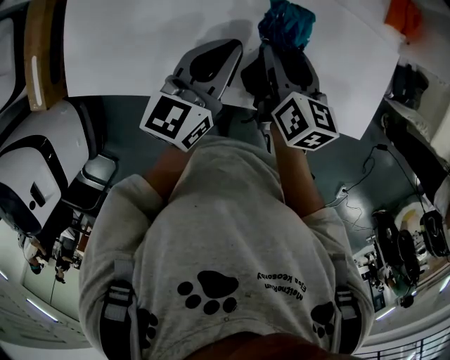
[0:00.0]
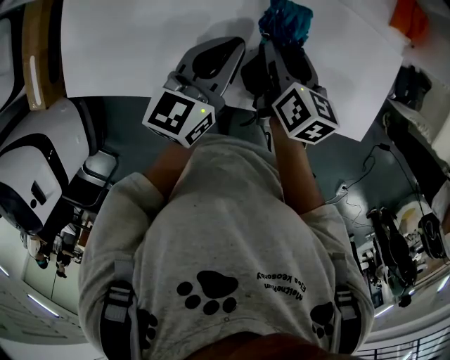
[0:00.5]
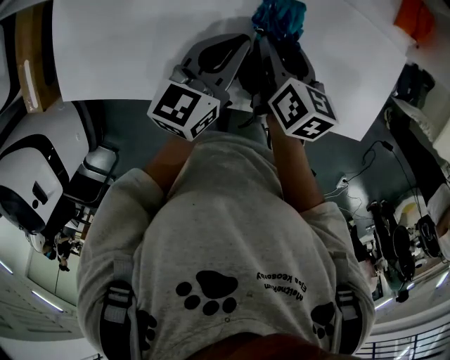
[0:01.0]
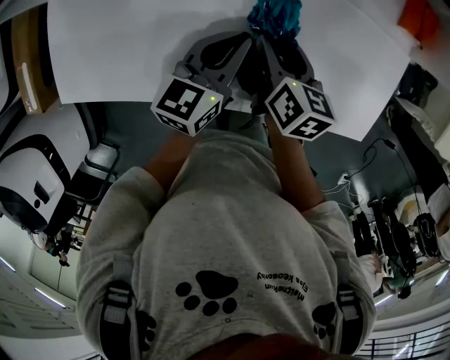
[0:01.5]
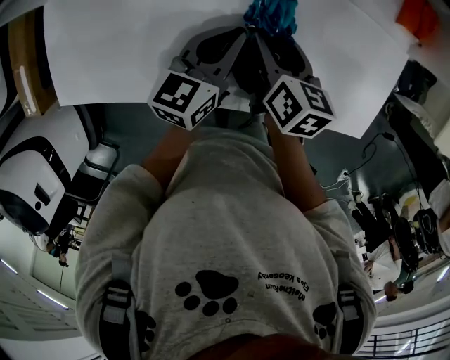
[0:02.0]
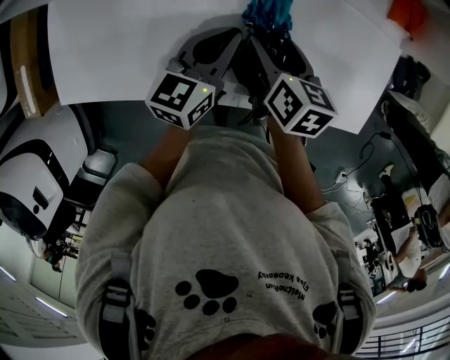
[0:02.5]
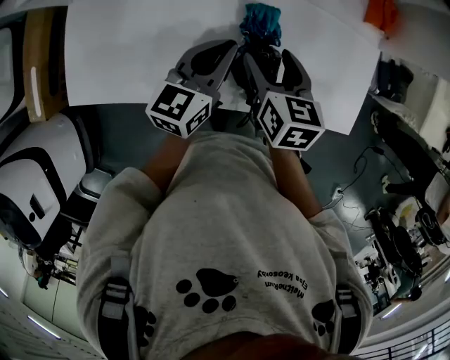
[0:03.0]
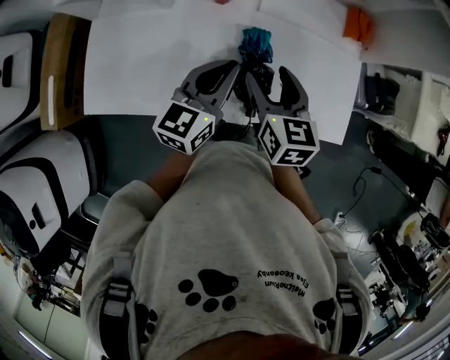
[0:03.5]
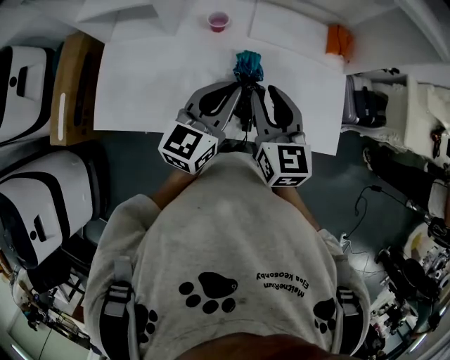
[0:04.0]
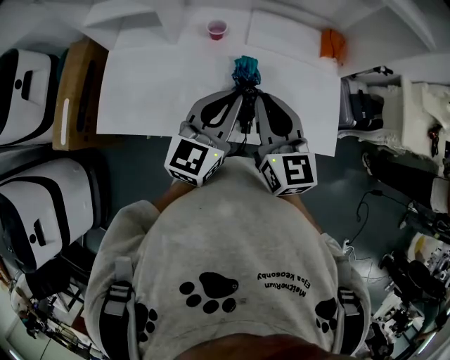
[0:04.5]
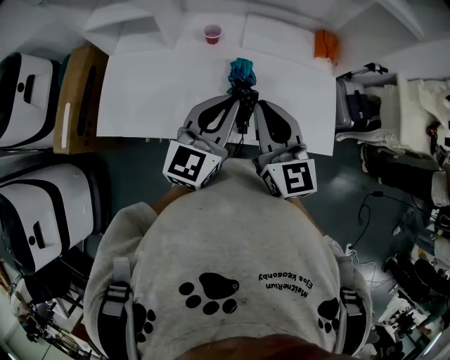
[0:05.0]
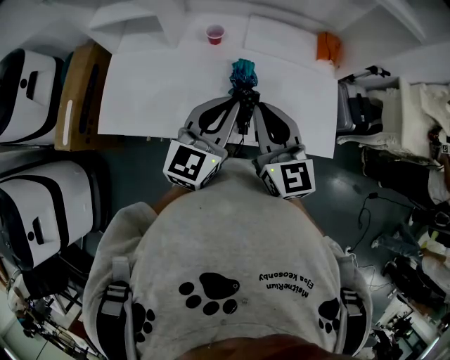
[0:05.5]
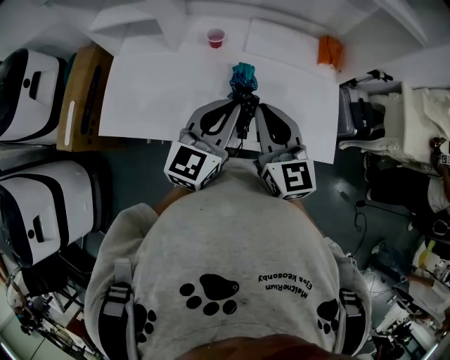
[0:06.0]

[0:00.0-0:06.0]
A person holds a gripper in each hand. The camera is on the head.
0:00.0 to 0:02.0: The two grippers go some 5 cm downward.
0:02.0 to 0:04.0: Both grippers move upward and backward, approximately 25 cm. The left gripper turns by approximately 20 degrees, while the right gripper rotates roughly 40 degrees, and closes up.
0:04.0 to 0:06.0: Both grippers travel together backward, approximately 5 cm. The right gripper closes its fingers.

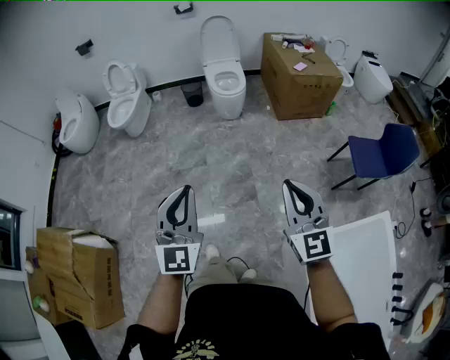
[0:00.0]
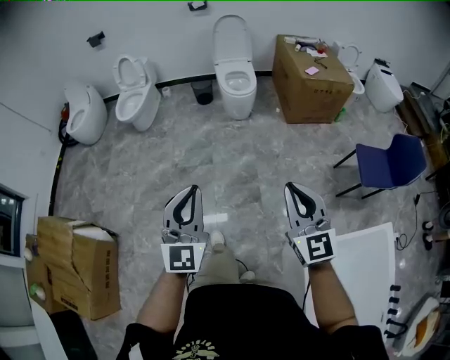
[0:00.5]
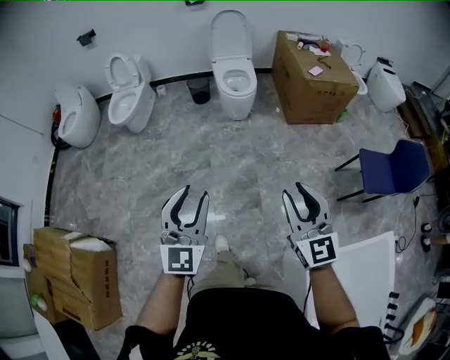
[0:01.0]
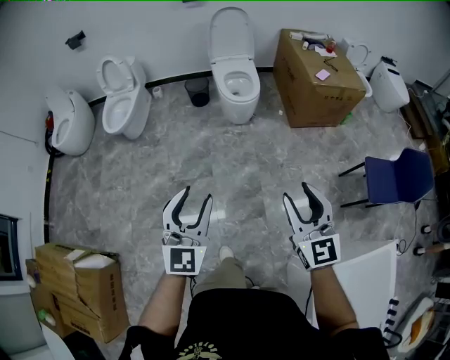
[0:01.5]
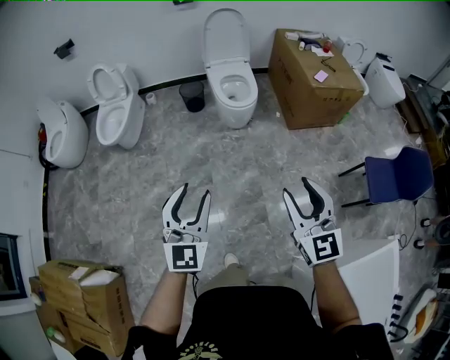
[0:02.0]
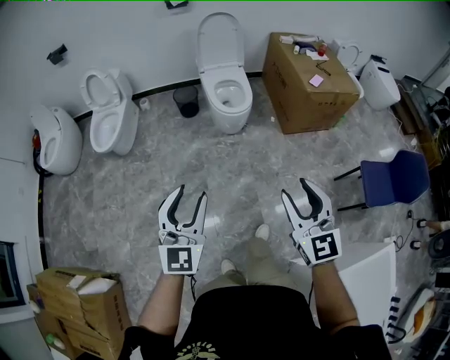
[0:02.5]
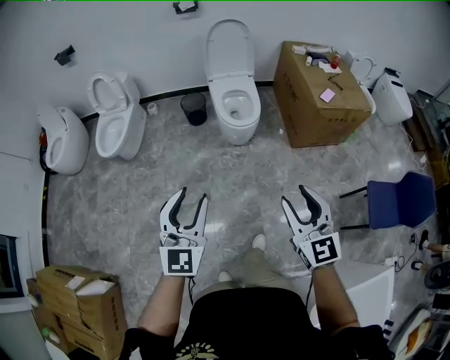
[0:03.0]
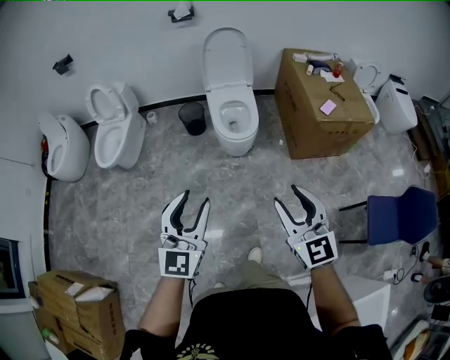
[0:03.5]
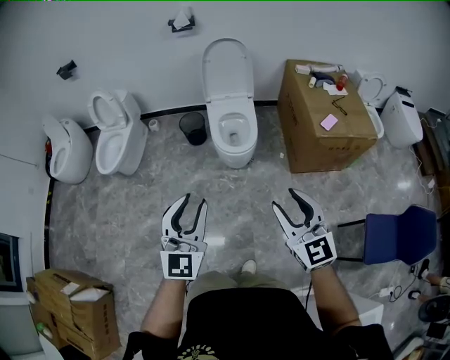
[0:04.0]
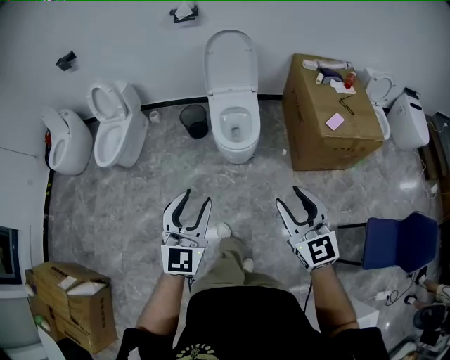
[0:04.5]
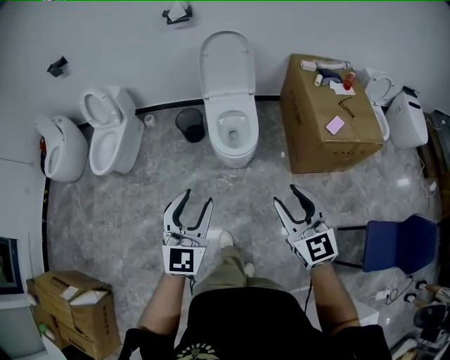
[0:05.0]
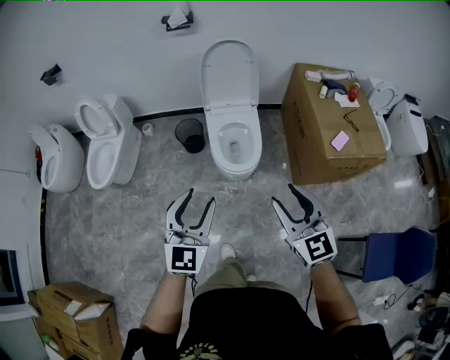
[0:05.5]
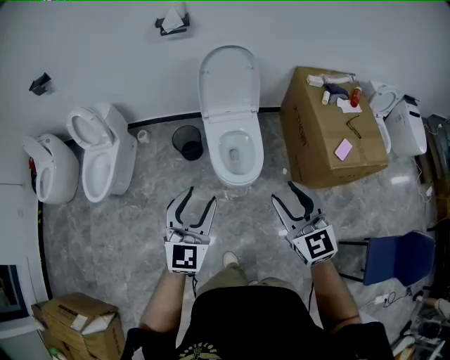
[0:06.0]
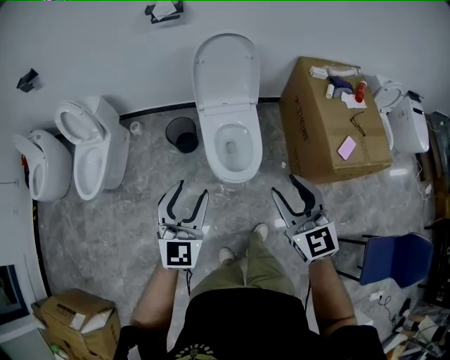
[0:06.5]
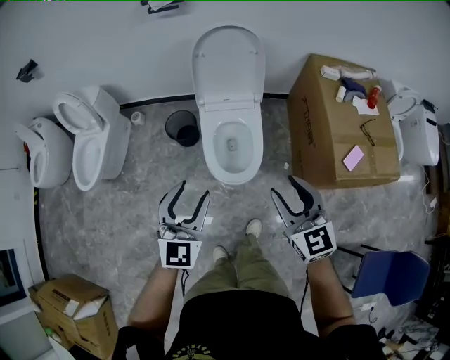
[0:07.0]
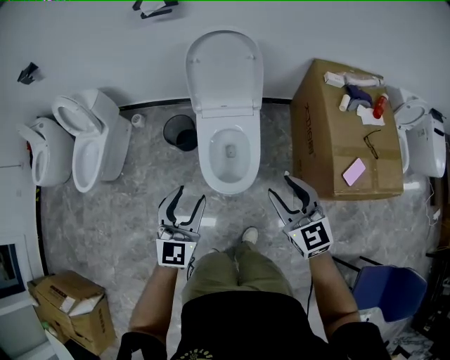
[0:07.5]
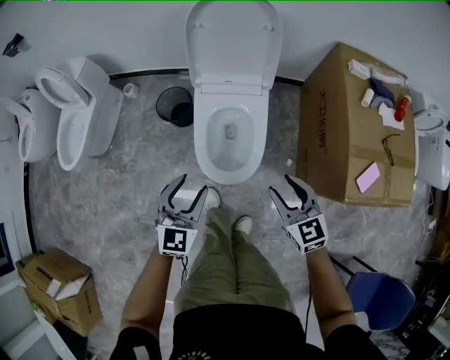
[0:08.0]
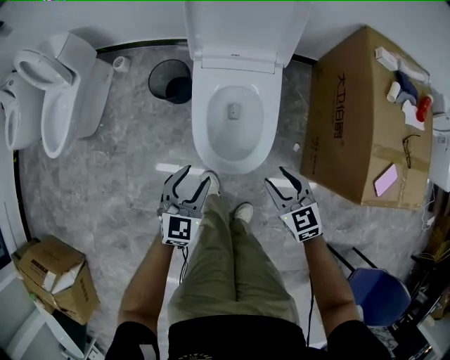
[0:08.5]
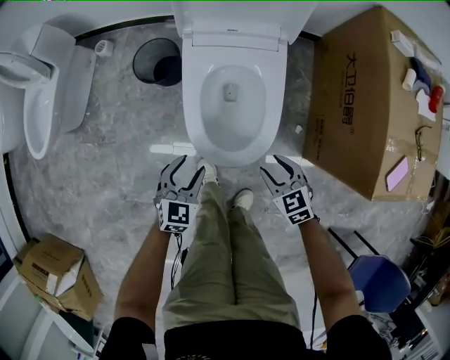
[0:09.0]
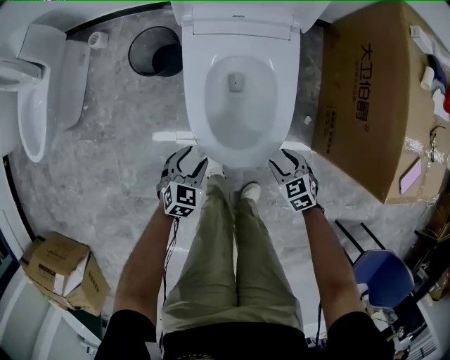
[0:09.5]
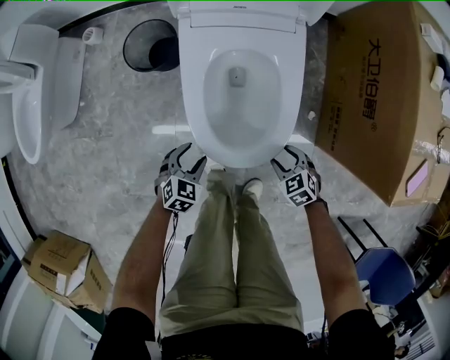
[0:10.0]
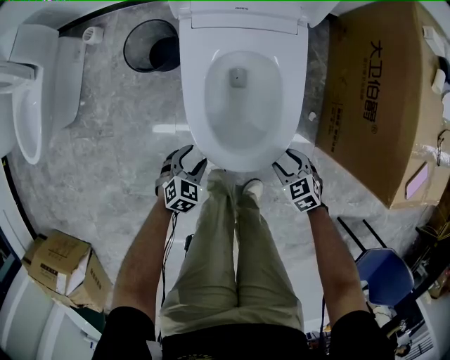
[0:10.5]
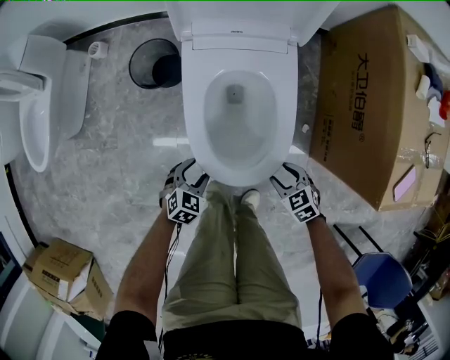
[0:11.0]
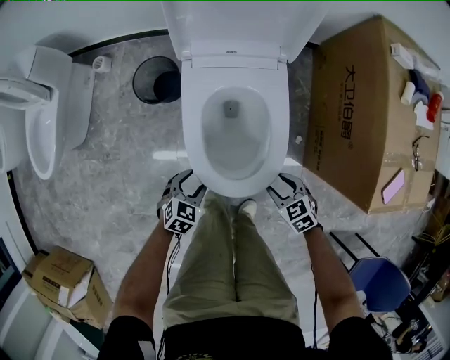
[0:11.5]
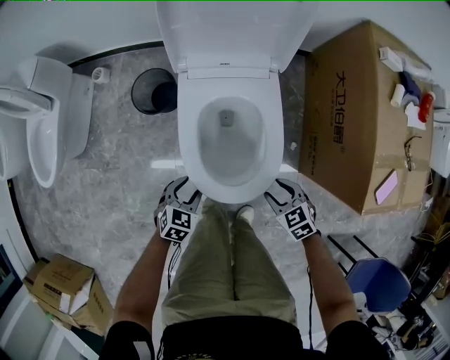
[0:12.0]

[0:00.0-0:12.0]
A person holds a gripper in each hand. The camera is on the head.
0:00.0 to 0:02.0: Both grippers move forward, some 35 cm. The right gripper opens its fingers. Meanwhile the left gripper opens its fingers.
0:02.0 to 0:04.0: The two grippers go roughly 30 cm forward and to the right.
0:04.0 to 0:06.0: Both grippers travel together forward, approximately 30 cm.
0:06.0 to 0:08.0: The left gripper moves downward and forward, some 35 cm. Meanwhile the right gripper is displaced downward, forward and to the right by some 40 cm, and rotates approximately 20 degrees.
0:08.0 to 0:10.0: The two grippers go some 40 cm downward. The left gripper tips its fingers downward by about 40 degrees. The right gripper tips its fingers downward by some 40 degrees.
0:10.0 to 0:12.0: The two grippers go some 15 cm upward.

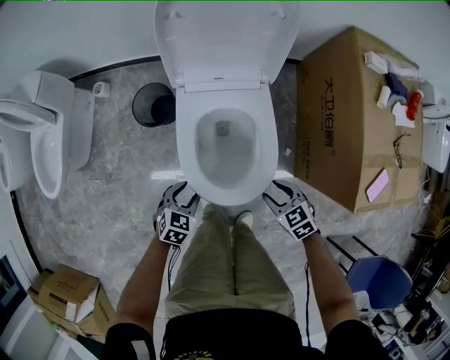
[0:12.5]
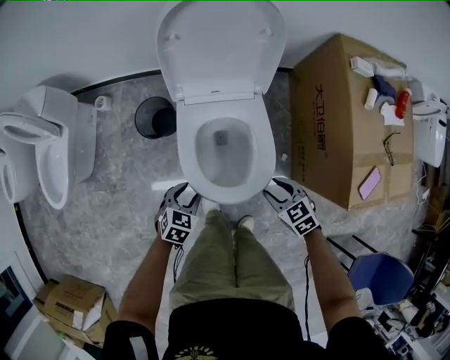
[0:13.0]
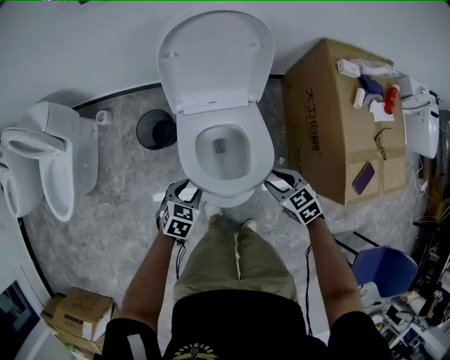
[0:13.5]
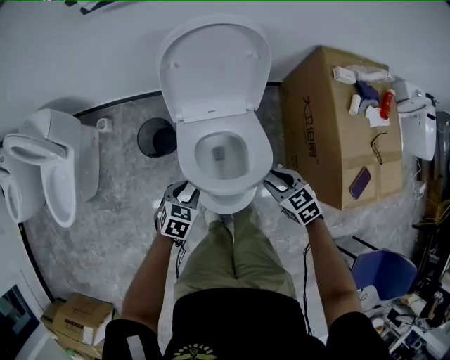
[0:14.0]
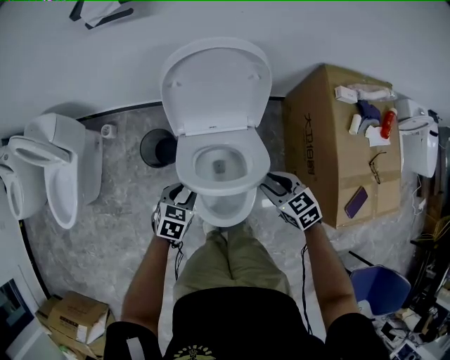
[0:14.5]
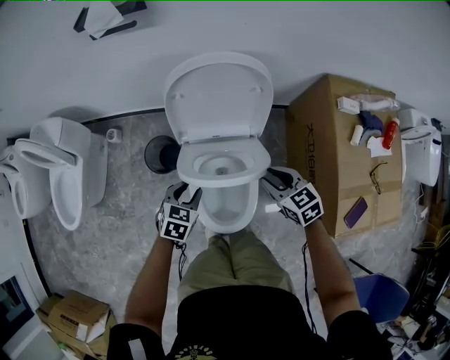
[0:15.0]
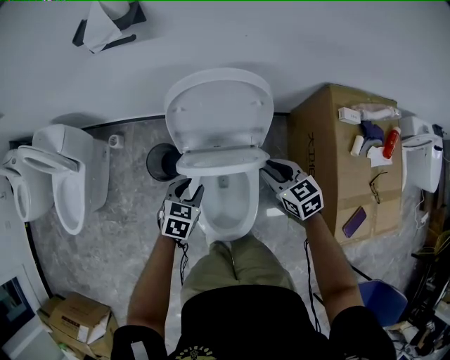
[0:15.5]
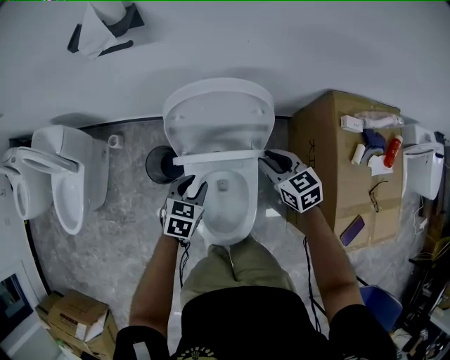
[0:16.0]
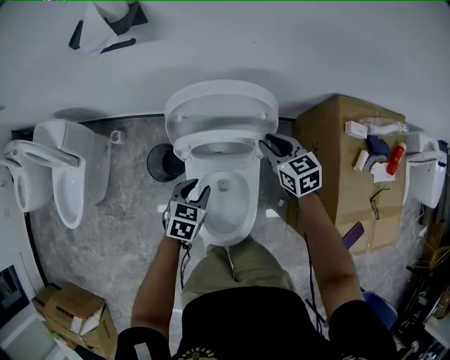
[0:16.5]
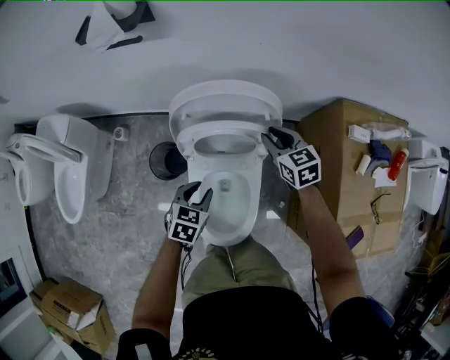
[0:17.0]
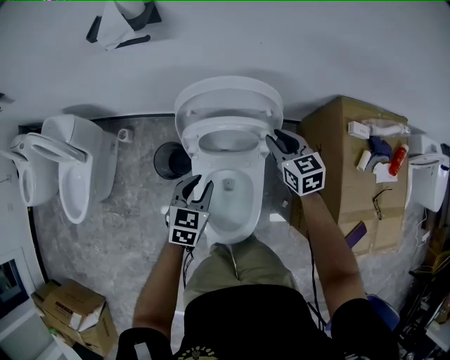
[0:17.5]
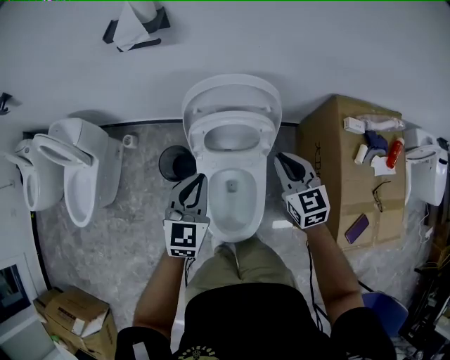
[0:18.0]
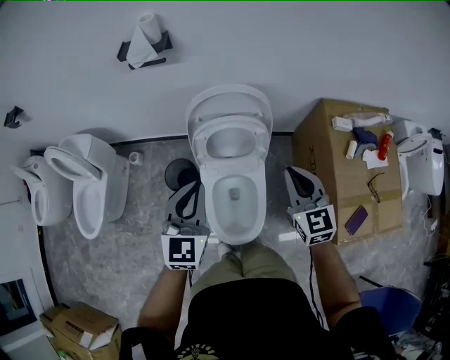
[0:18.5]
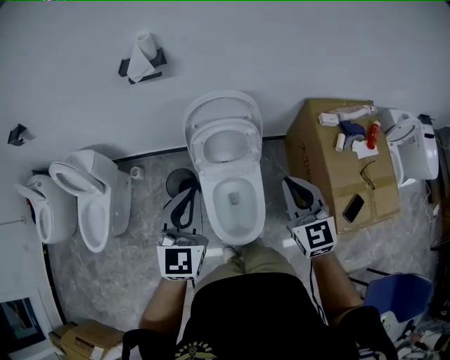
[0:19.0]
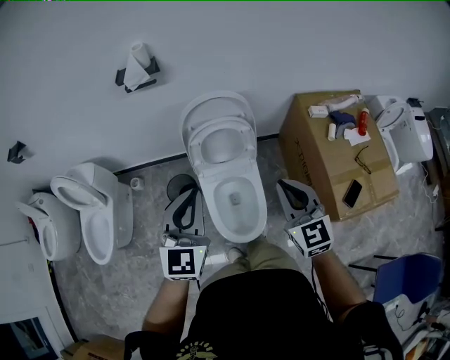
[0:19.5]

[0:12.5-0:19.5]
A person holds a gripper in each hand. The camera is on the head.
0:12.5 to 0:14.5: The left gripper travels forward and upward by roughly 20 cm, while the right gripper shifts some 25 cm upward and forward.
0:14.5 to 0:16.0: The right gripper travels forward by some 20 cm. The left gripper goes about 15 cm forward, to the right and upward.
0:16.0 to 0:17.5: The right gripper moves forward, approximately 5 cm.
0:17.5 to 0:19.5: The left gripper moves upward and backward, about 35 cm, points its fingers some 30 degrees further upward, and closes its fingers. The right gripper is displaced backward and upward by some 40 cm, rotates approximately 30 degrees, and closes.

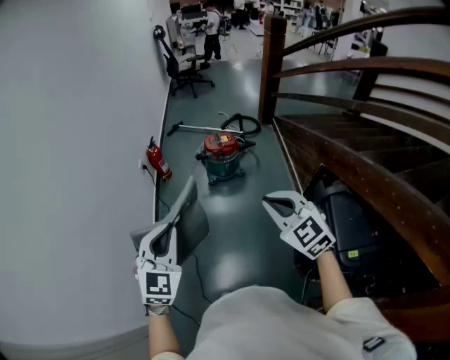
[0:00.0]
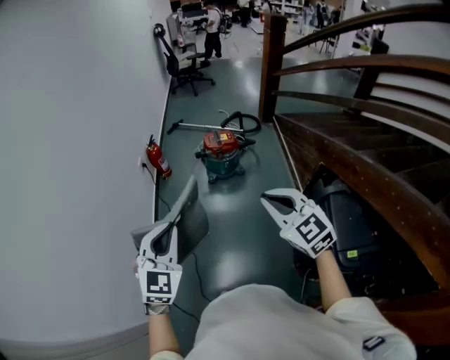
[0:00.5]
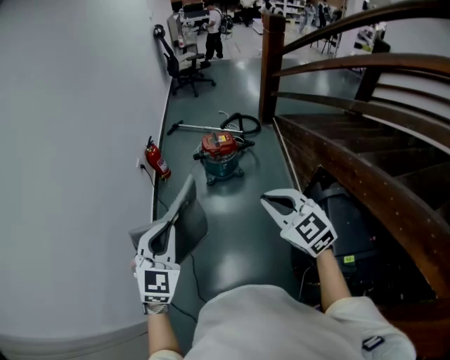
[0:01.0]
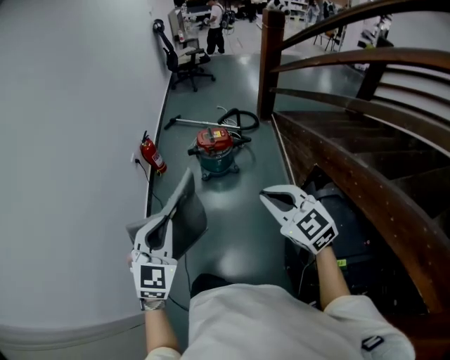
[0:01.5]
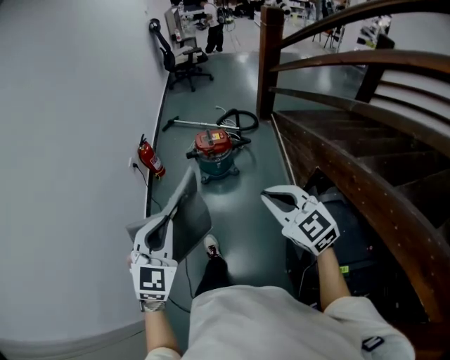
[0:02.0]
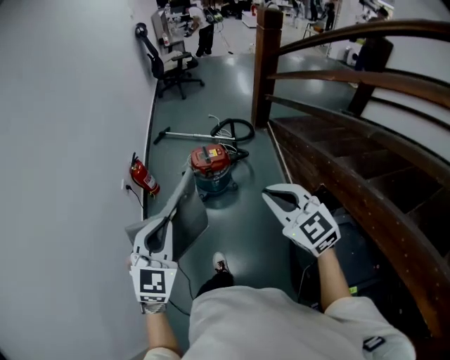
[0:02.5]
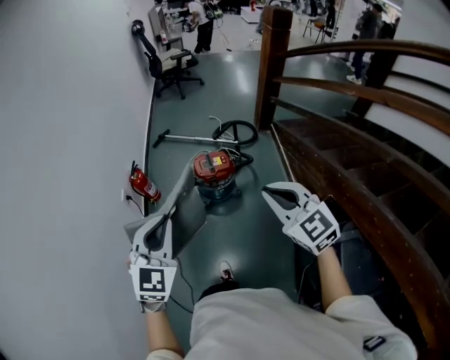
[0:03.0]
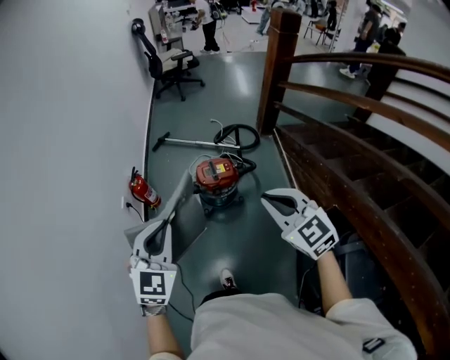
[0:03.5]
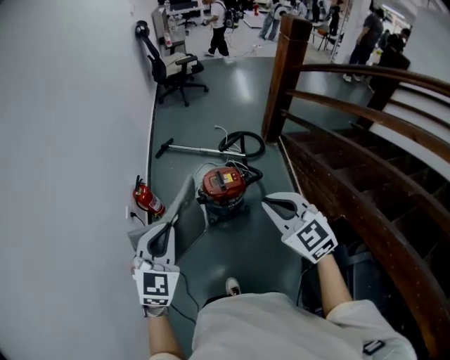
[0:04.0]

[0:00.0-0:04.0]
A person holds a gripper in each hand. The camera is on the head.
0:00.0 to 0:02.0: The two grippers go roughly 10 cm to the right.
0:02.0 to 0:04.0: The two grippers travel together, forward, about 40 cm.
